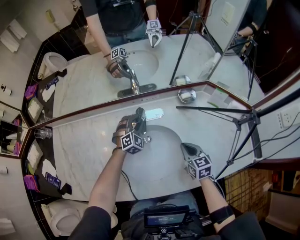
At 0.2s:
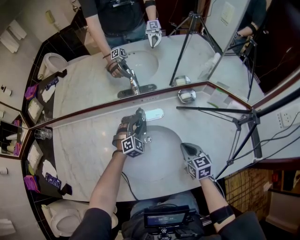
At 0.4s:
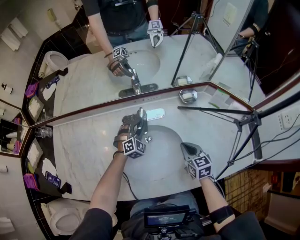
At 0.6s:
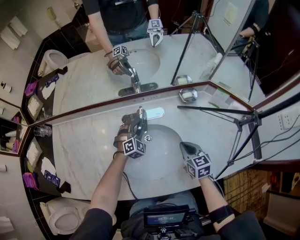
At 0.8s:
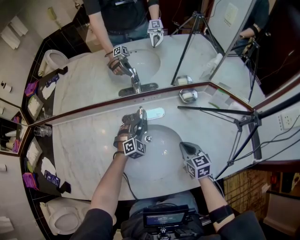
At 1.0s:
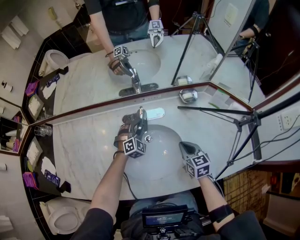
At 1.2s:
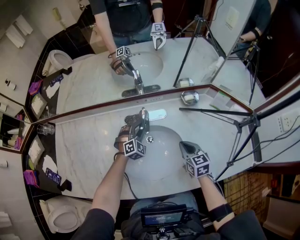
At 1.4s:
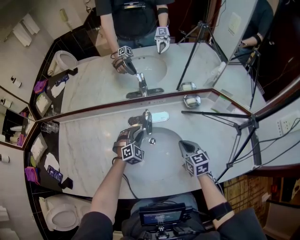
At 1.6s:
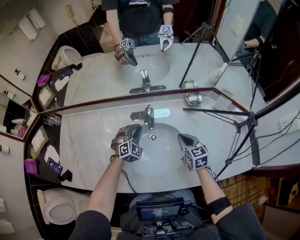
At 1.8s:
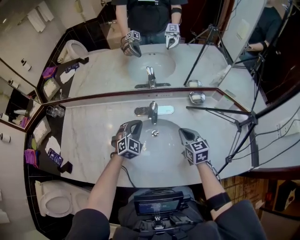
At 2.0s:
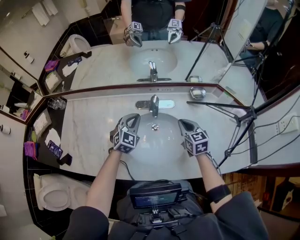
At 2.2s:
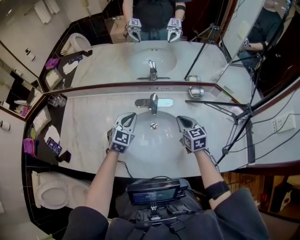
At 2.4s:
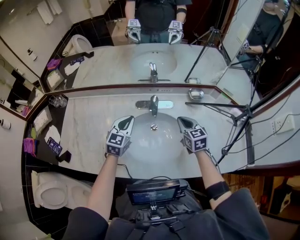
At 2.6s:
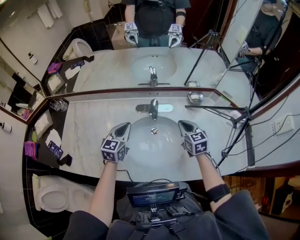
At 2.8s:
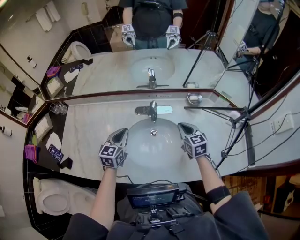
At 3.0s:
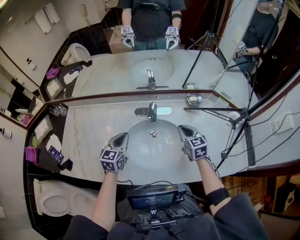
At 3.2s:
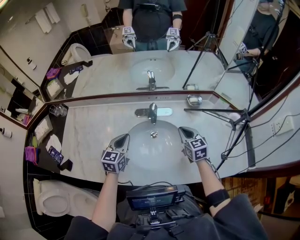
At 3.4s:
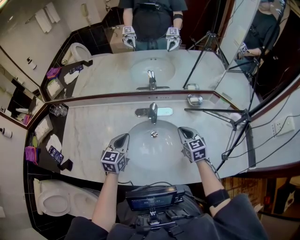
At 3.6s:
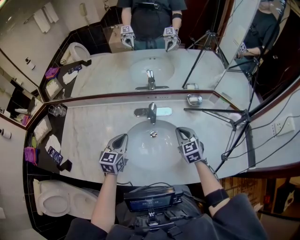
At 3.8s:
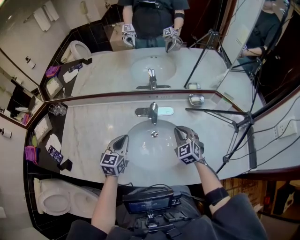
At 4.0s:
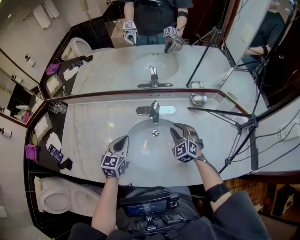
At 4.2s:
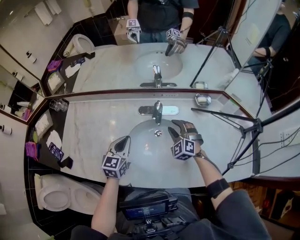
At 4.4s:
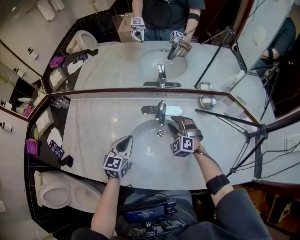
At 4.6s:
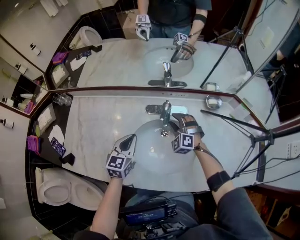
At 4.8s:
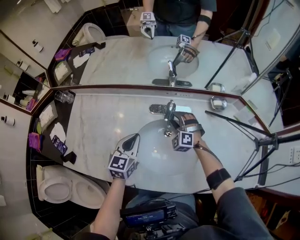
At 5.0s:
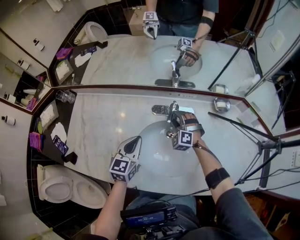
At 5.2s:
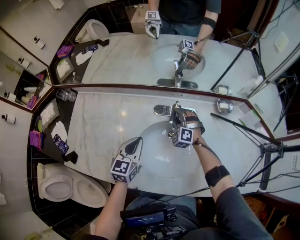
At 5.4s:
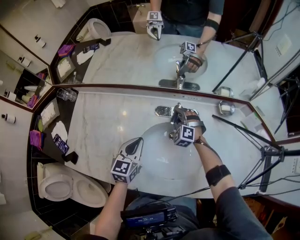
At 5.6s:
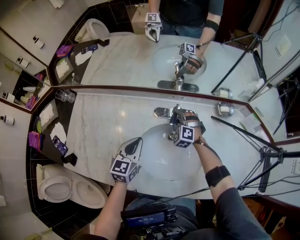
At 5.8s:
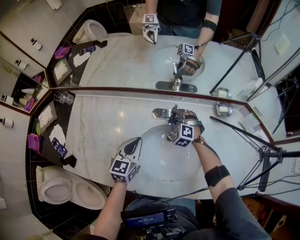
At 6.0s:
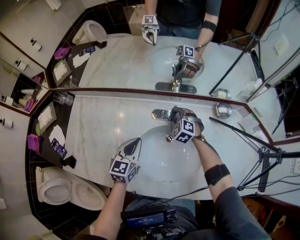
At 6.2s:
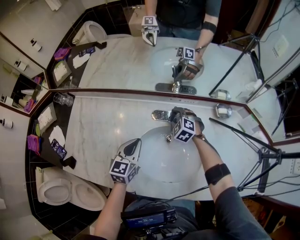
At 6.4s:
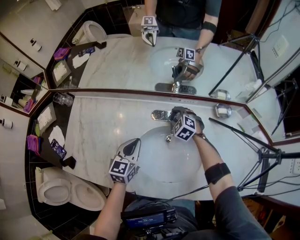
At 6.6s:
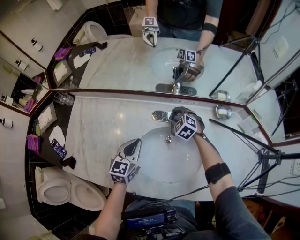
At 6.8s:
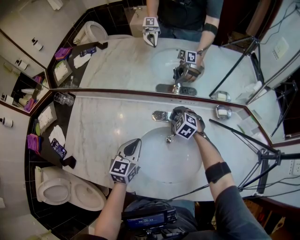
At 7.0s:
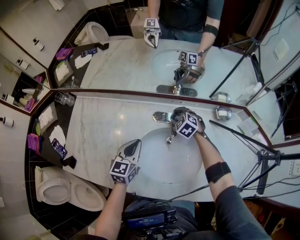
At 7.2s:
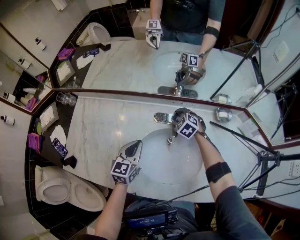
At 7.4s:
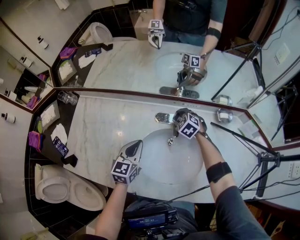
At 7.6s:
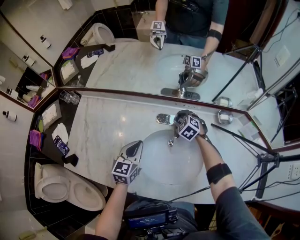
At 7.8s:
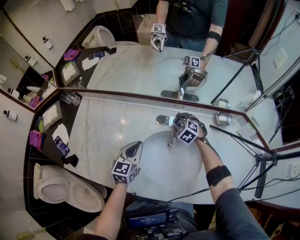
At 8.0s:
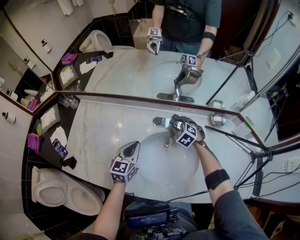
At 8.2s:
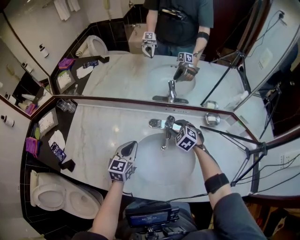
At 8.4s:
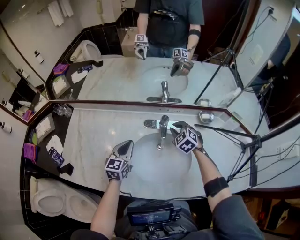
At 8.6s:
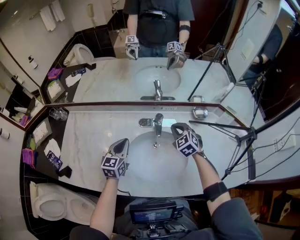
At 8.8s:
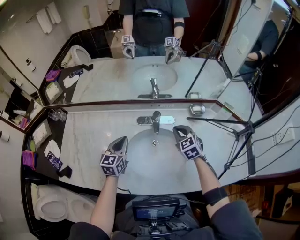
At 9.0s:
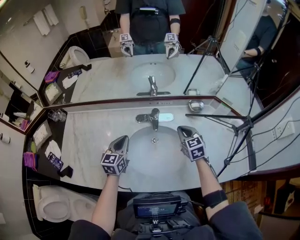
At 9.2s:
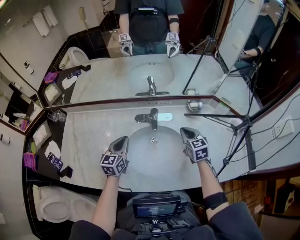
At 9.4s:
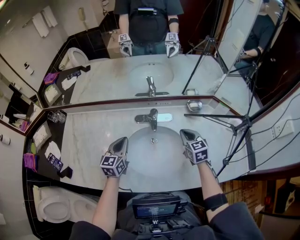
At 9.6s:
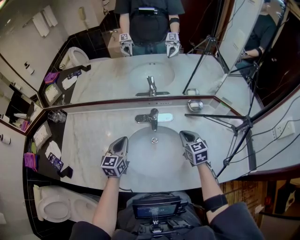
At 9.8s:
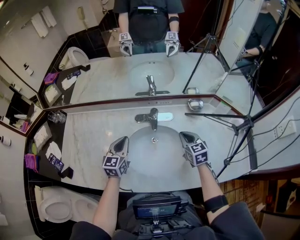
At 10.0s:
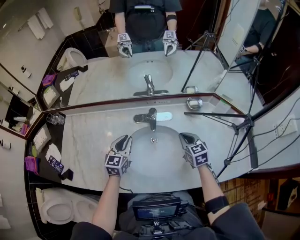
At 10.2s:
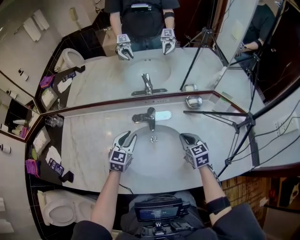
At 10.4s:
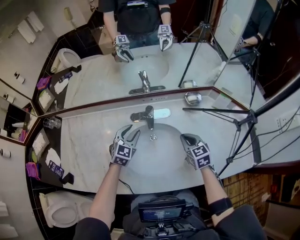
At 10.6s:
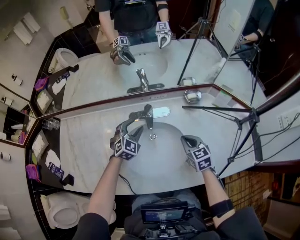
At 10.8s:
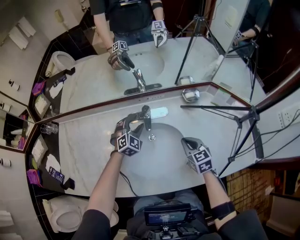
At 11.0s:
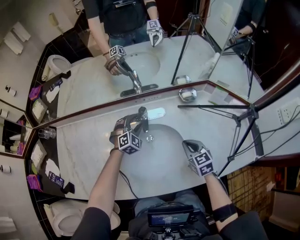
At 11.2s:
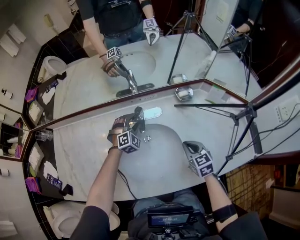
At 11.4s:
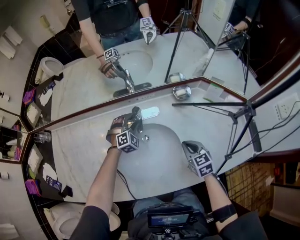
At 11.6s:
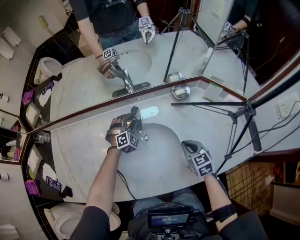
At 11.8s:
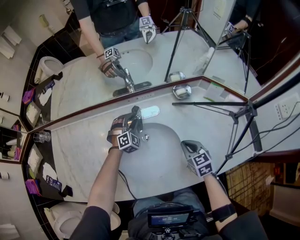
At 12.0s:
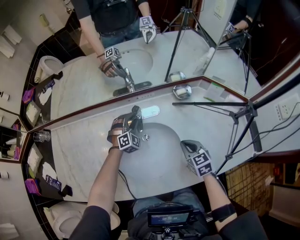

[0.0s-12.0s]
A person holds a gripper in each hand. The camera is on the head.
0.0s to 1.6s: The right gripper ends up some 5 cm from where it was; the left gripper goes roughly 5 cm backward.
1.6s to 3.0s: The left gripper travels backward, to the left and upward by about 15 cm, and twists about 50 degrees counterclockwise, seen from behind.
3.0s to 4.4s: The right gripper is displaced to the left, forward and downward by about 15 cm, twists about 60 degrees counterclockwise, seen from behind, and opens.
4.4s to 6.0s: The right gripper heads forward, downward and to the left, covering about 15 cm.
6.0s to 7.6s: The grippers stay close to where they were, moving slightly.
7.6s to 9.0s: The right gripper moves backward, upward and to the right, some 25 cm, rotates approximately 40 degrees, and closes.
9.0s to 10.4s: The right gripper changes place by about 5 cm. The left gripper heads to the right and forward, covering about 10 cm, changes its angle by about 30 degrees, and opens up.
10.4s to 12.0s: The right gripper changes place by roughly 5 cm; the left gripper goes some 15 cm forward, downward and to the right, and turns by roughly 40 degrees.

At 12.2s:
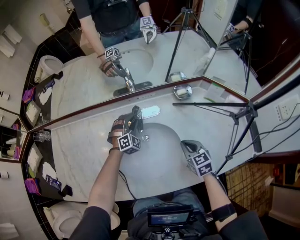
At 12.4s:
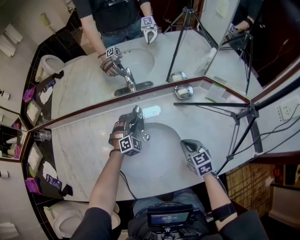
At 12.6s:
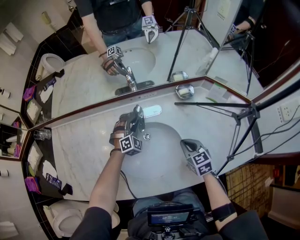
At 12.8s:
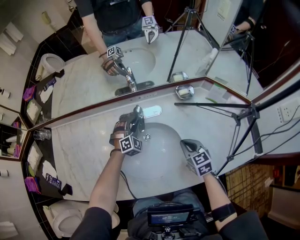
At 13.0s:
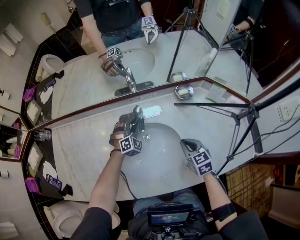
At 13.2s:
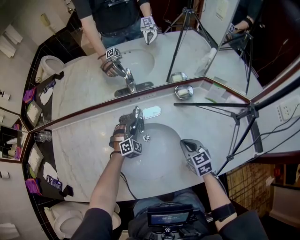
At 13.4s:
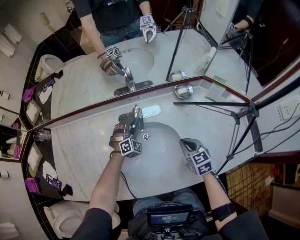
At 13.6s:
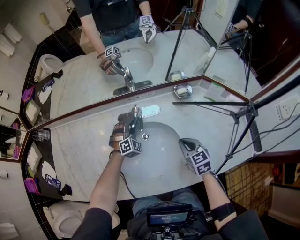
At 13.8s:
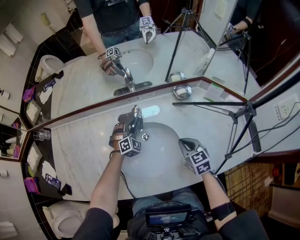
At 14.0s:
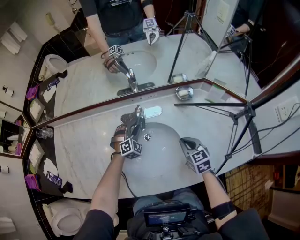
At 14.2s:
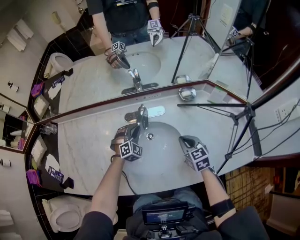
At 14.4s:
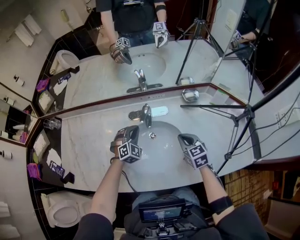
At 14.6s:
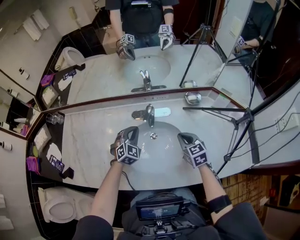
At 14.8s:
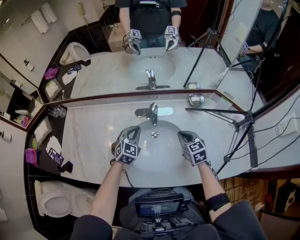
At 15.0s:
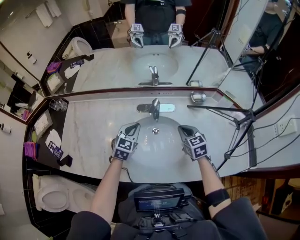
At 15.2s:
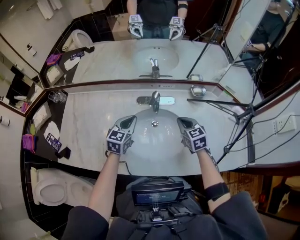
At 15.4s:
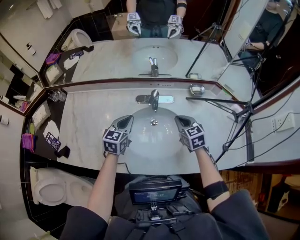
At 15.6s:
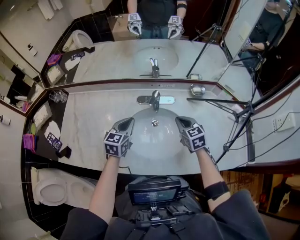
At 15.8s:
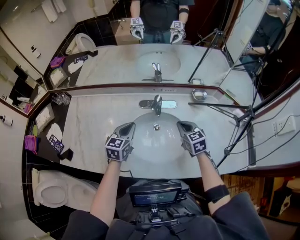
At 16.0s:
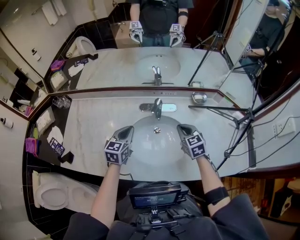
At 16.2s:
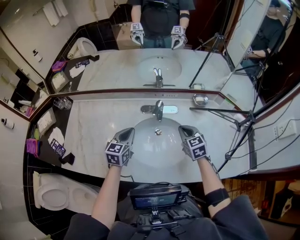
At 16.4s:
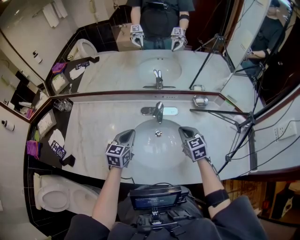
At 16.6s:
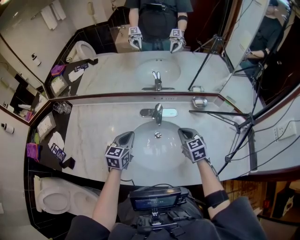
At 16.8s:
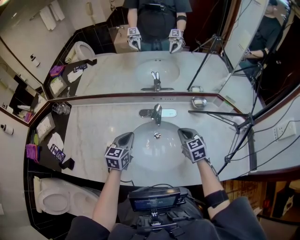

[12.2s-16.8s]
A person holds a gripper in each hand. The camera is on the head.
12.2s to 13.8s: The grippers move only a little.
13.8s to 15.2s: The right gripper moves to the left and upward, about 10 cm. The left gripper goes some 20 cm upward, backward and to the left, rotates around the line of its fingers by roughly 60 degrees, counterclockwise from behind, and closes up.
15.2s to 16.8s: The grippers stay close to where they were, moving slightly.

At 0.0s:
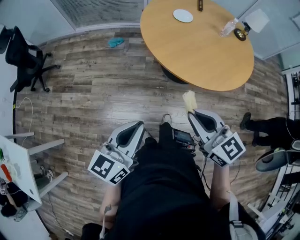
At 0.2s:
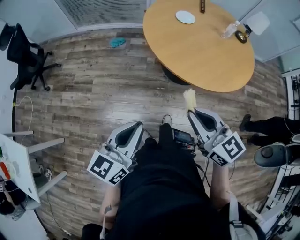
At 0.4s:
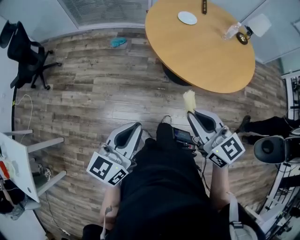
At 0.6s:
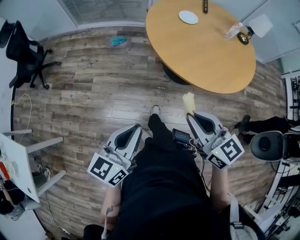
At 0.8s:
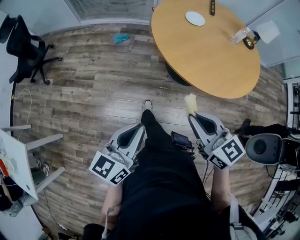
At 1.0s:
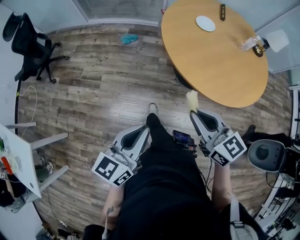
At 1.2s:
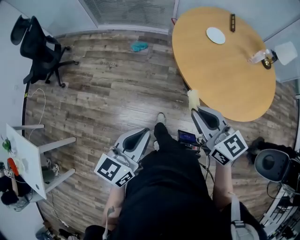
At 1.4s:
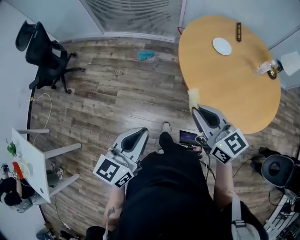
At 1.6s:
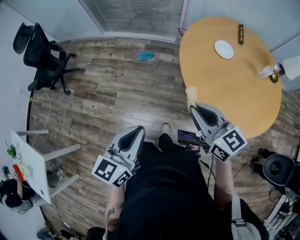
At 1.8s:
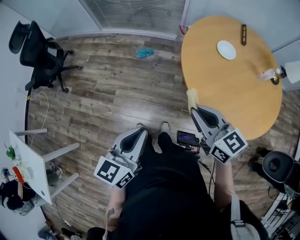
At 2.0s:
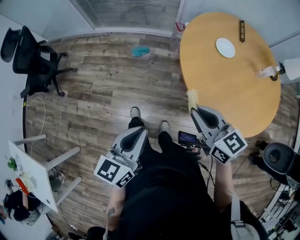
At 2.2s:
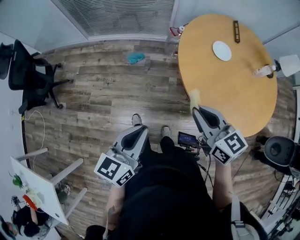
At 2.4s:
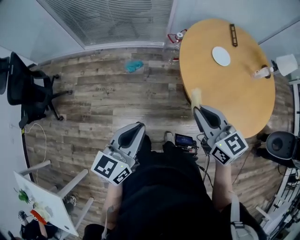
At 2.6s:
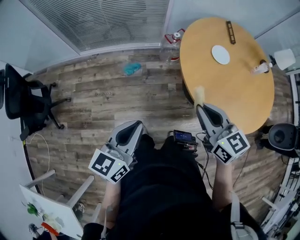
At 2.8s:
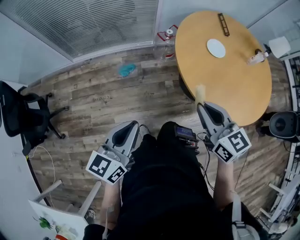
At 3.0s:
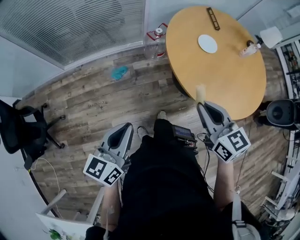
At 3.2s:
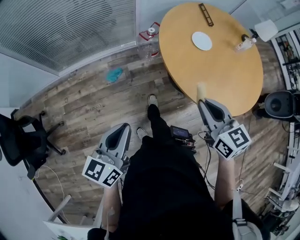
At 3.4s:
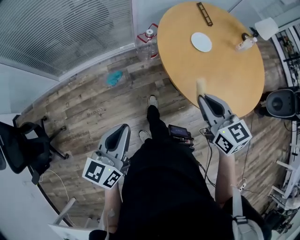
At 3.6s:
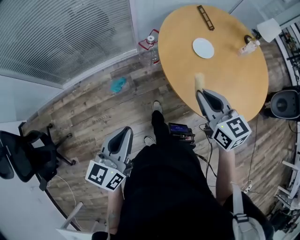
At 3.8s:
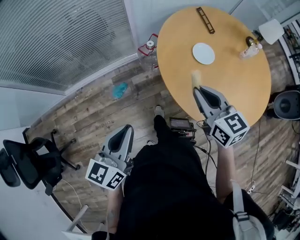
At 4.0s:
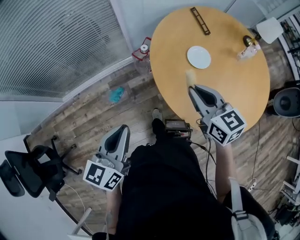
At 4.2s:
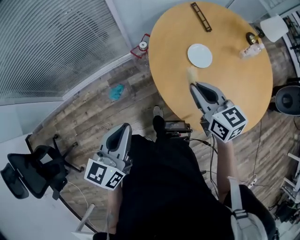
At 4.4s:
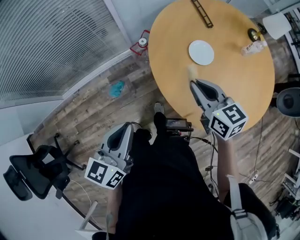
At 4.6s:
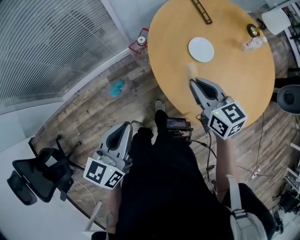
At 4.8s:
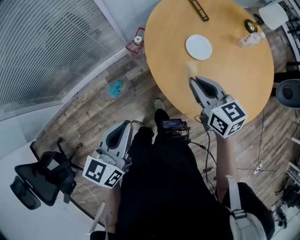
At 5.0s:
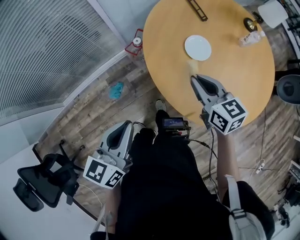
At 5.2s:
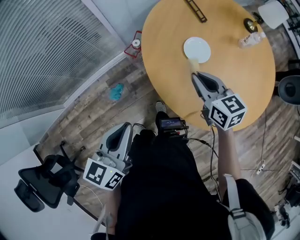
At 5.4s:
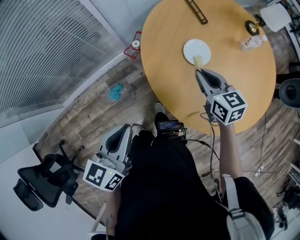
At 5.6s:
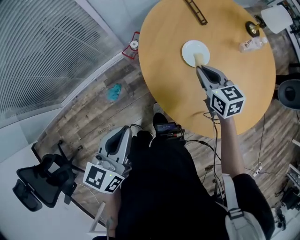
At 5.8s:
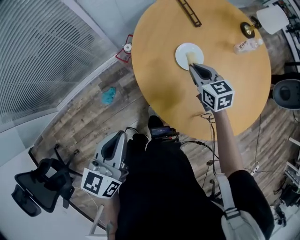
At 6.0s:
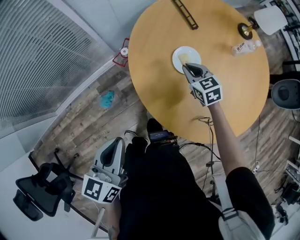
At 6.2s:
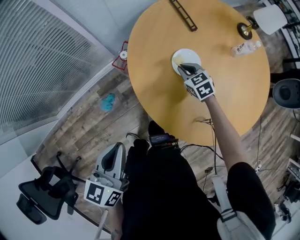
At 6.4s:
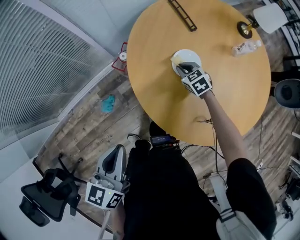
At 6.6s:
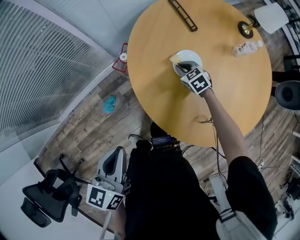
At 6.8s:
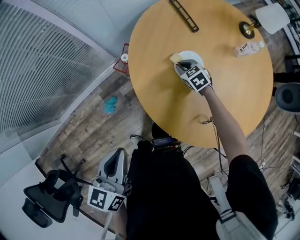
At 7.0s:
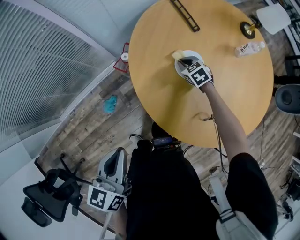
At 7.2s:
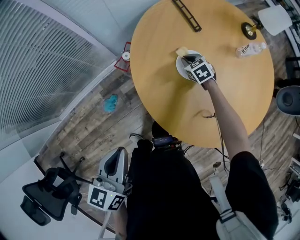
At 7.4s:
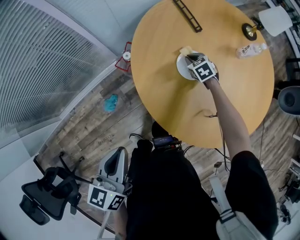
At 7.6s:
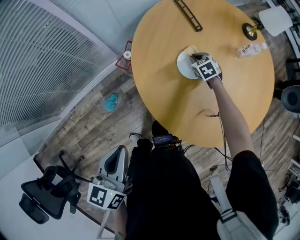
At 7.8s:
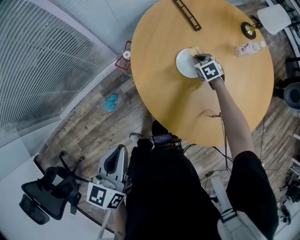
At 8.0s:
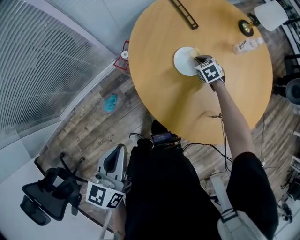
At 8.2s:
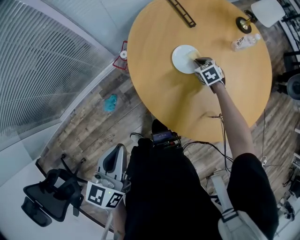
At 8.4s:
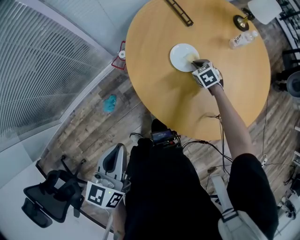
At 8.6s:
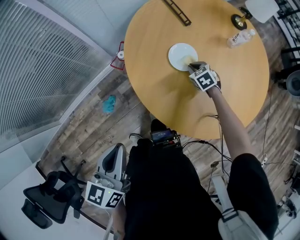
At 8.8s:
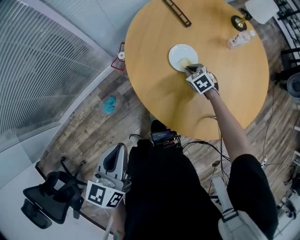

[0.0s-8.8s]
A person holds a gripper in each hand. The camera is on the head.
0.0s to 1.4s: Both grippers travel together forward and to the left, some 25 cm.
1.4s to 3.0s: The right gripper changes place by approximately 25 cm, and turns by about 40 degrees. Meanwhile the left gripper moves approximately 35 cm, and swivels about 20 degrees.
3.0s to 4.4s: Both grippers travel together forward, about 30 cm.
4.4s to 5.8s: The left gripper shifts roughly 5 cm forward, while the right gripper shifts approximately 20 cm forward, downward and to the right.
5.8s to 7.4s: The right gripper shifts some 20 cm downward and forward, and changes its angle by approximately 30 degrees.
7.4s to 8.8s: The right gripper travels backward by approximately 10 cm.
